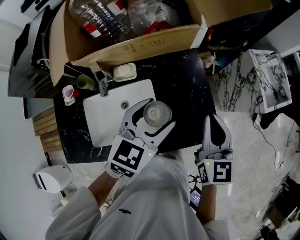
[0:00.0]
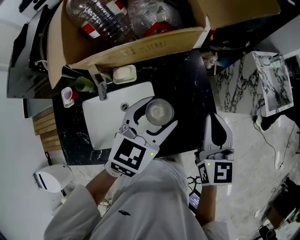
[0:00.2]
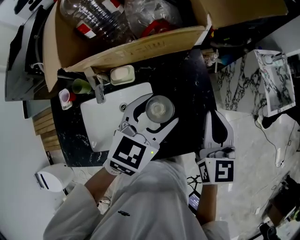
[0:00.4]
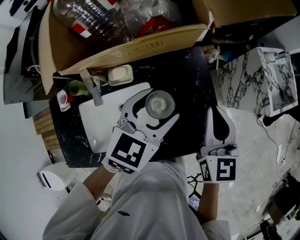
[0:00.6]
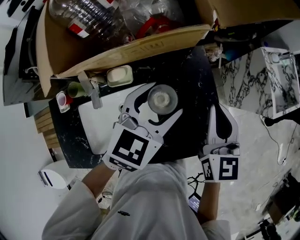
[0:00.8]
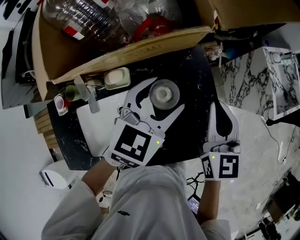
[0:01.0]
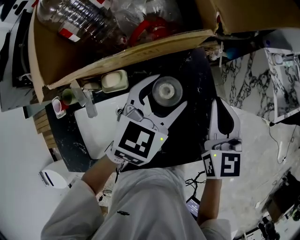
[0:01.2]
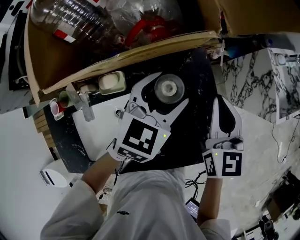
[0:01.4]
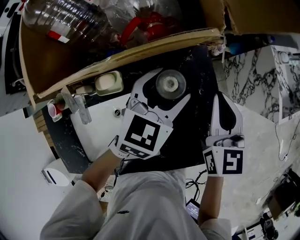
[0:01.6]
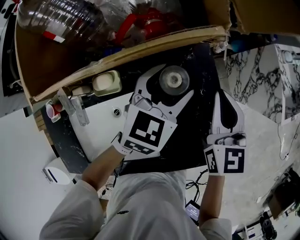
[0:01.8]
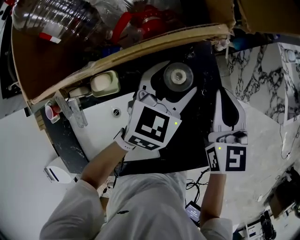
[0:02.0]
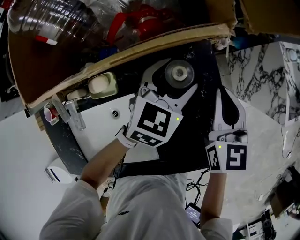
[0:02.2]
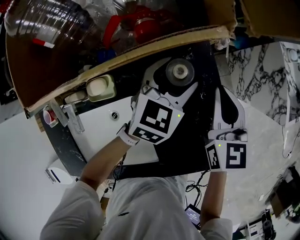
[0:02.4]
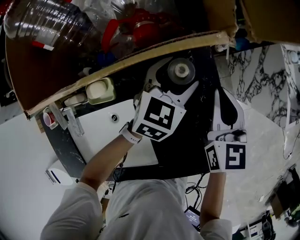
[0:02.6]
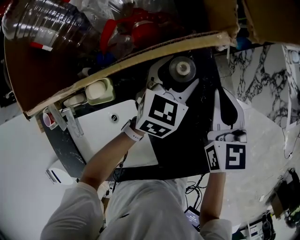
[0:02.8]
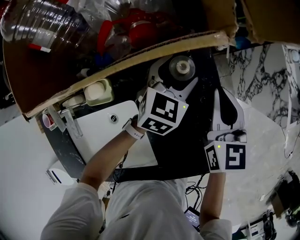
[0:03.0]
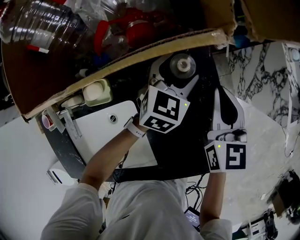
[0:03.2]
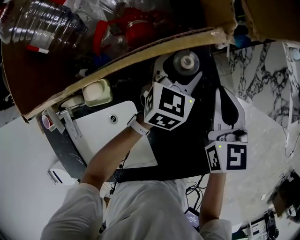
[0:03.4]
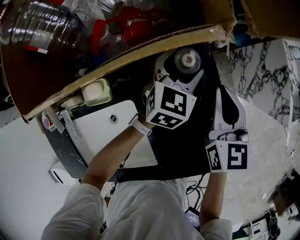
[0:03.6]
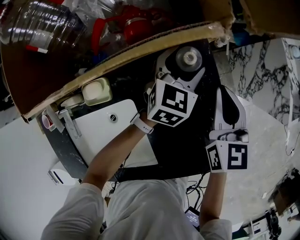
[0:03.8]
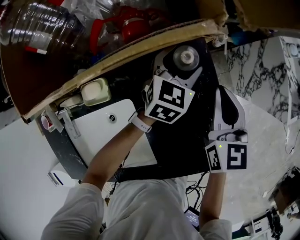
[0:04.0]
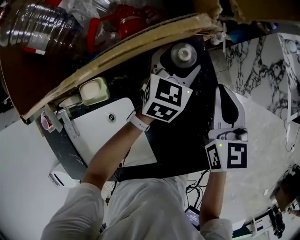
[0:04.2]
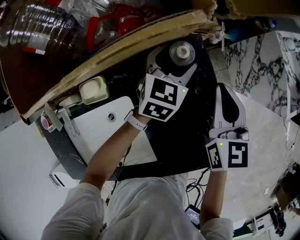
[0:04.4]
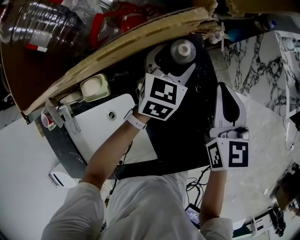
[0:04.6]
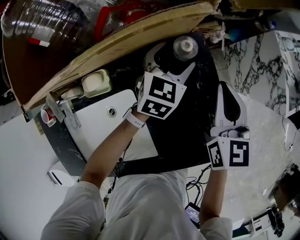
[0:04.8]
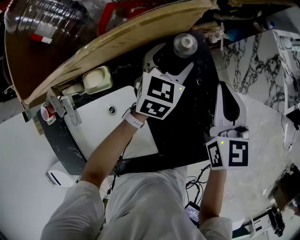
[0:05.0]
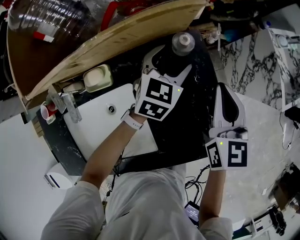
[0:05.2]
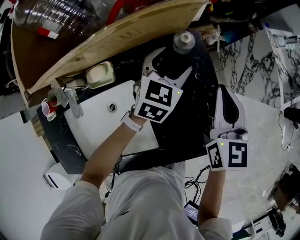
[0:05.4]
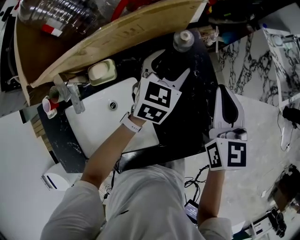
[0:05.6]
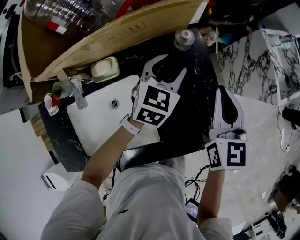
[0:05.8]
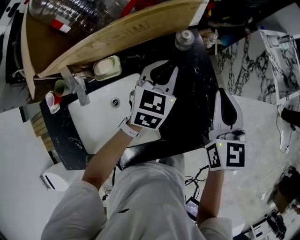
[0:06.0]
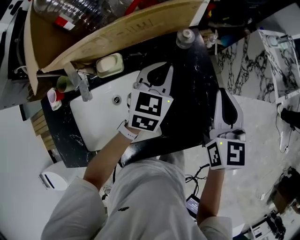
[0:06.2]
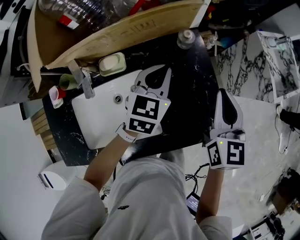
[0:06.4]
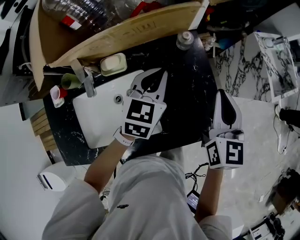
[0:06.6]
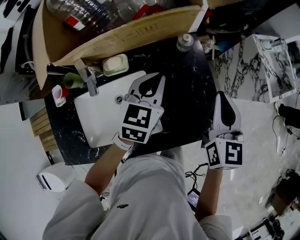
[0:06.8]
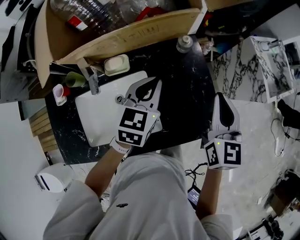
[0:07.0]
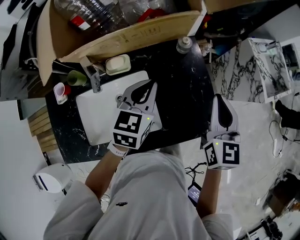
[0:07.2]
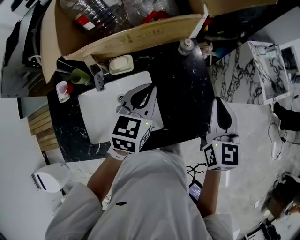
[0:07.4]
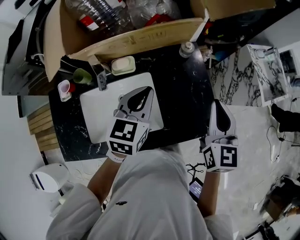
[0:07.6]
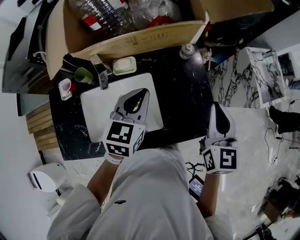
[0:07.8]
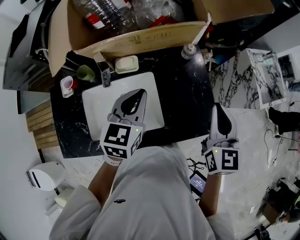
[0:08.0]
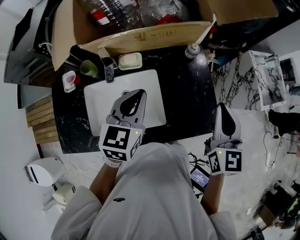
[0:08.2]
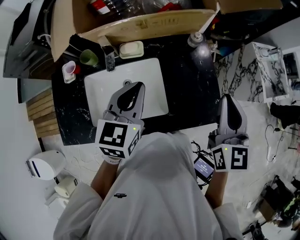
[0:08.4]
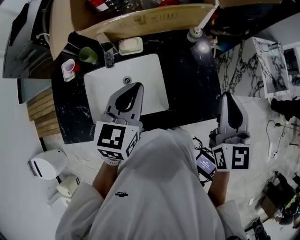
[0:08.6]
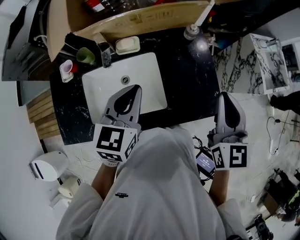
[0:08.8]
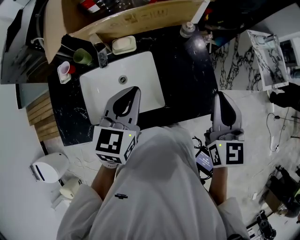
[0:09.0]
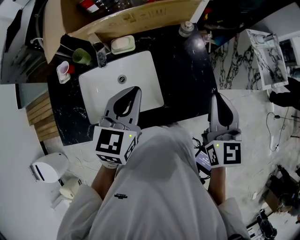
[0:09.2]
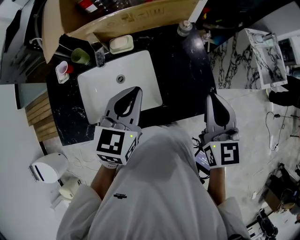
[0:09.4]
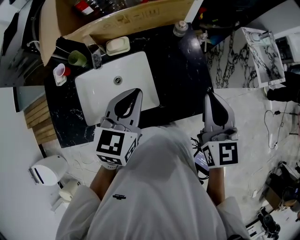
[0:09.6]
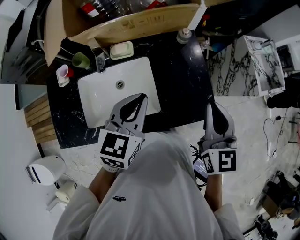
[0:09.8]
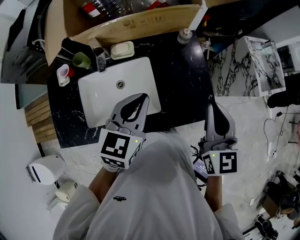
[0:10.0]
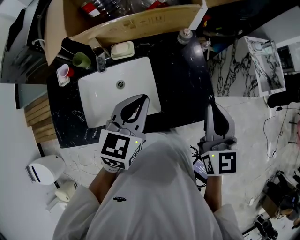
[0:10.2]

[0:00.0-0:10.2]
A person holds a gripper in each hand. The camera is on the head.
0:00.0 to 0:01.4: Both grippers move forward and downward, some 20 cm.
0:01.4 to 0:03.0: The left gripper heads downward and forward, covering about 20 cm. Meanwhile the right gripper goes some 10 cm downward and forward.
0:03.0 to 0:04.4: There are only small adjustments of the grippers.
0:04.4 to 0:05.8: Both grippers move backward and upward, roughly 15 cm. The left gripper closes its fingers.
0:05.8 to 0:07.2: The left gripper heads backward, upward and to the left, covering approximately 20 cm, and closes its fingers, while the right gripper moves upward and backward, about 10 cm.
0:07.2 to 0:08.8: The right gripper moves backward and upward, some 10 cm; the left gripper shifts approximately 15 cm backward, upward and to the left.
0:08.8 to 0:10.2: The left gripper shifts by some 5 cm.

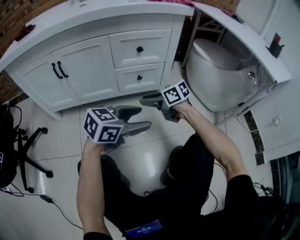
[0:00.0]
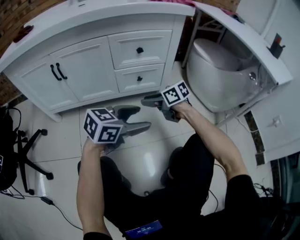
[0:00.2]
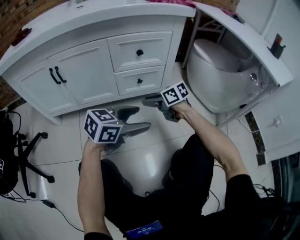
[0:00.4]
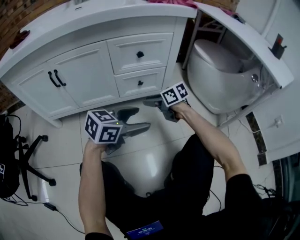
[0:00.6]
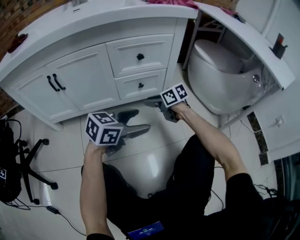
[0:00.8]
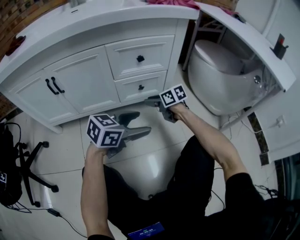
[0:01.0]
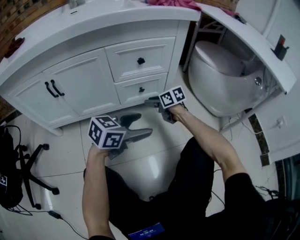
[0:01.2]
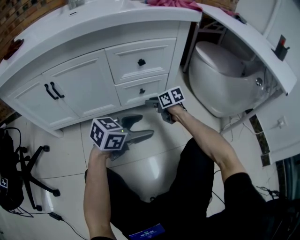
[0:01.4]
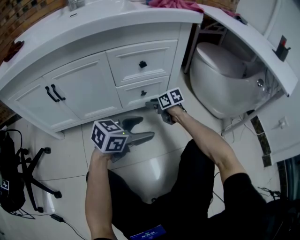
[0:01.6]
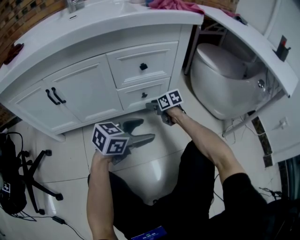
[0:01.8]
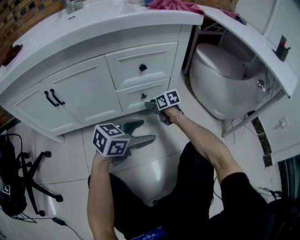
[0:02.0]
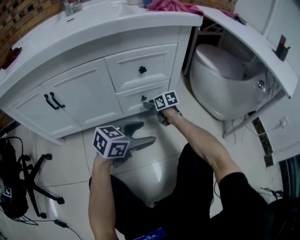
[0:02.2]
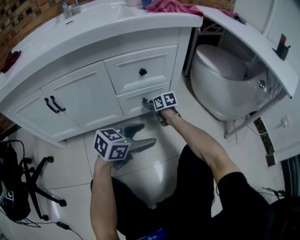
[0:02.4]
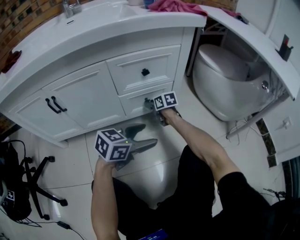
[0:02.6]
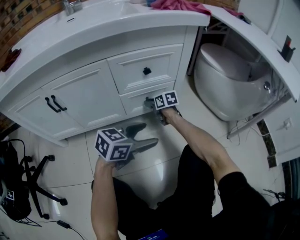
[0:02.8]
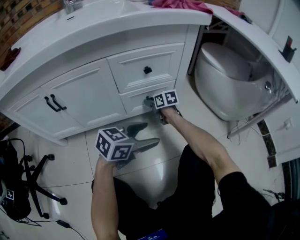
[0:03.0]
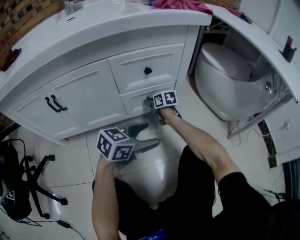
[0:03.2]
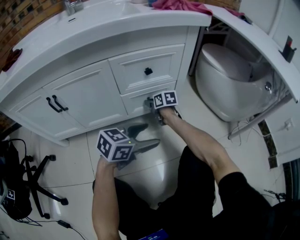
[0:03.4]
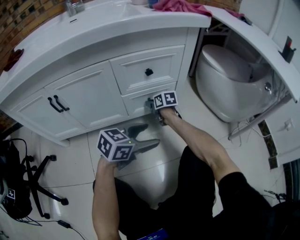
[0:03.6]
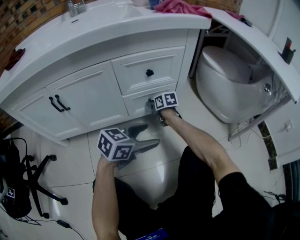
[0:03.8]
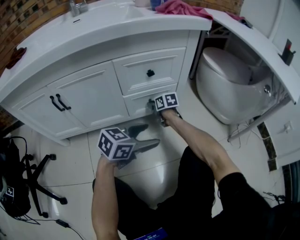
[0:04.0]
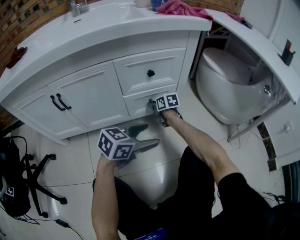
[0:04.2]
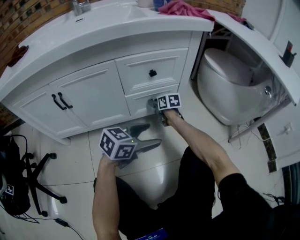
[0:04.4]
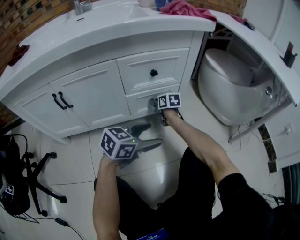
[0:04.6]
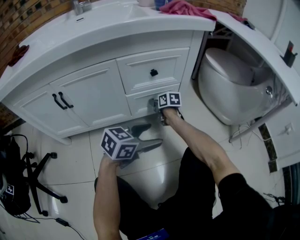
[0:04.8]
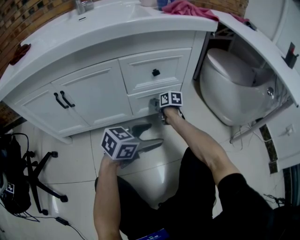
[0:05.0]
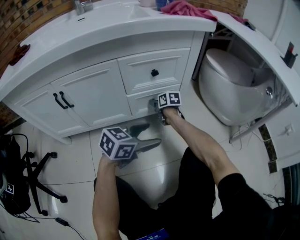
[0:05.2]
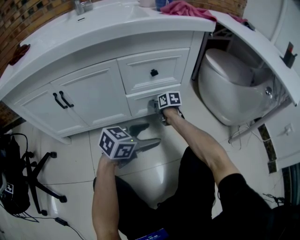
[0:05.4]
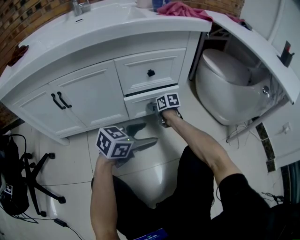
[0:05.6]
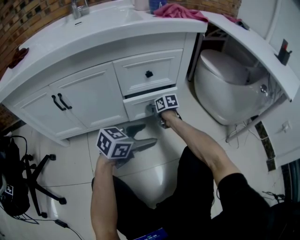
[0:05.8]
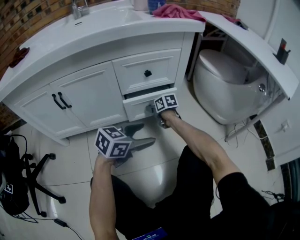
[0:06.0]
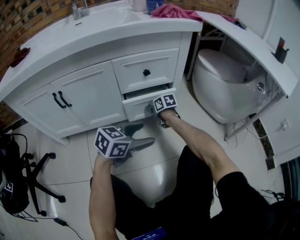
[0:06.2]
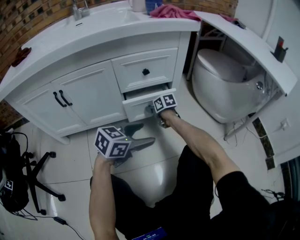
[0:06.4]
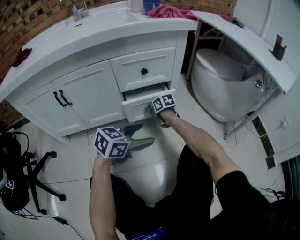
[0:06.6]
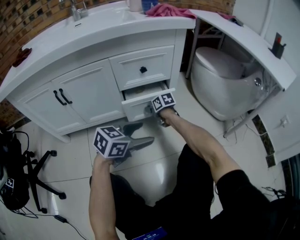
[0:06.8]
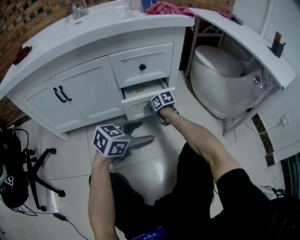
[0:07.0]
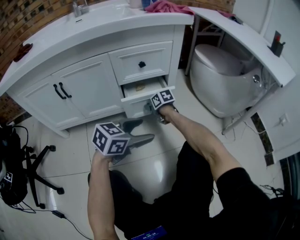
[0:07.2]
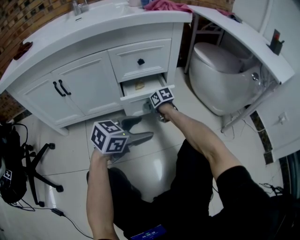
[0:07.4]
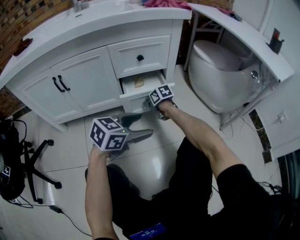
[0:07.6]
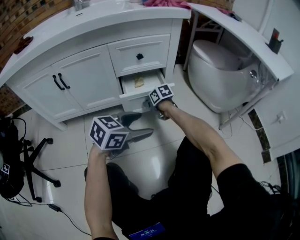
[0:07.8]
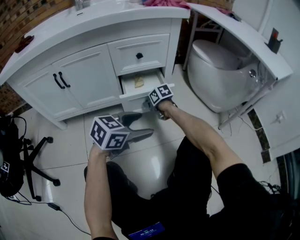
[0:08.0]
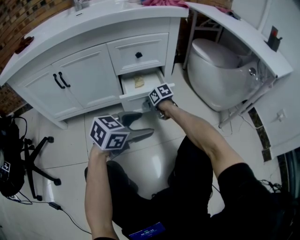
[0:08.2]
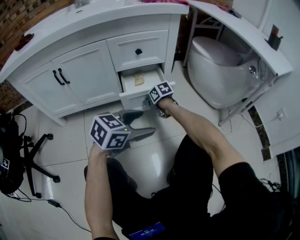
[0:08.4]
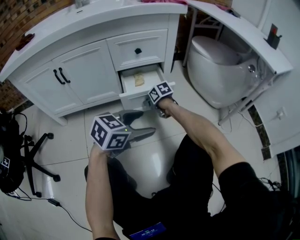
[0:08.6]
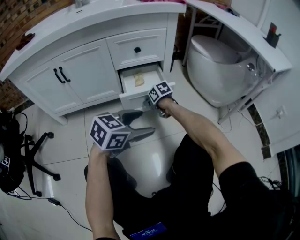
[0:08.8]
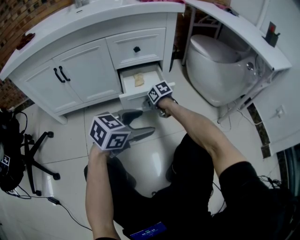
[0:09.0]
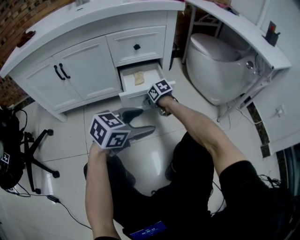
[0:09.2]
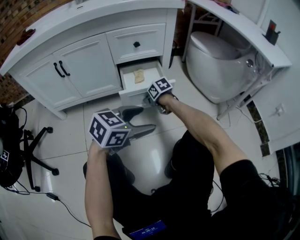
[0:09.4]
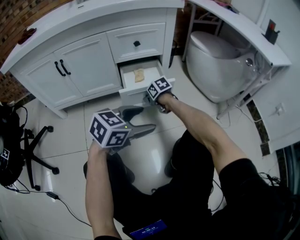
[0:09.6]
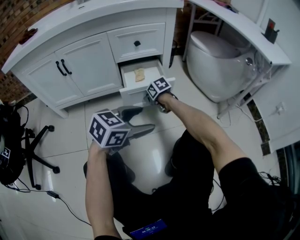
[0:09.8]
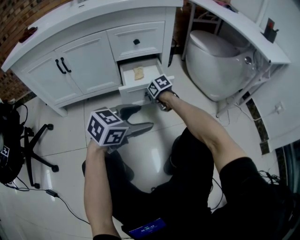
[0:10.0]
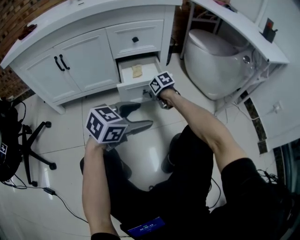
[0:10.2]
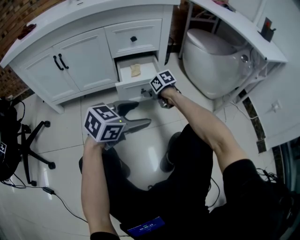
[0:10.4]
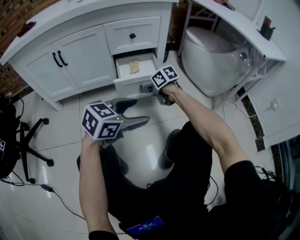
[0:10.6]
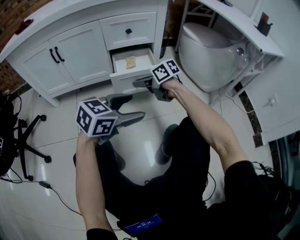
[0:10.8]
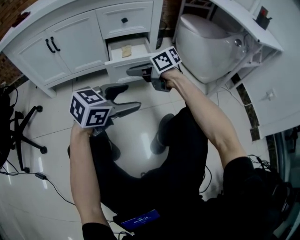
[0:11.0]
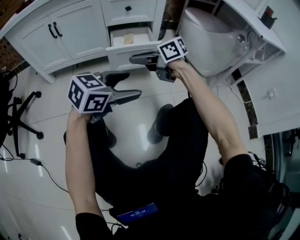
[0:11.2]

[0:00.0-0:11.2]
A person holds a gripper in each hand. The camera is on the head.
0:00.0 to 0:01.6: The right gripper moves roughly 20 cm, and rotates approximately 20 degrees. The left gripper changes place by about 10 cm.
0:01.6 to 0:03.2: The right gripper is displaced forward by roughly 5 cm.
0:03.2 to 0:04.8: The grippers stay close to where they were, moving slightly.
0:04.8 to 0:06.4: The right gripper heads backward, covering roughly 5 cm.
0:06.4 to 0:08.0: The grippers both shift backward by some 10 cm.
0:08.0 to 0:09.6: The left gripper ends up some 5 cm from where it was. Meanwhile the right gripper moves roughly 5 cm.
0:09.6 to 0:11.2: The right gripper travels upward by about 20 cm, and tilts its fingers approximately 30 degrees upward, while the left gripper shifts by some 5 cm.

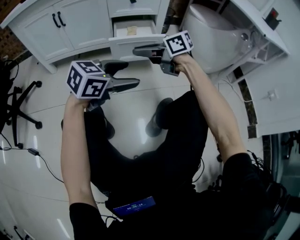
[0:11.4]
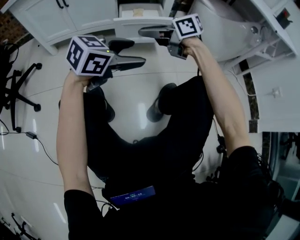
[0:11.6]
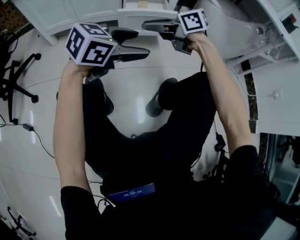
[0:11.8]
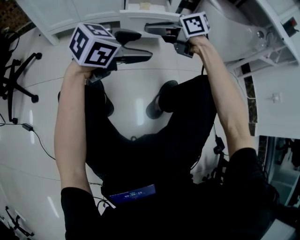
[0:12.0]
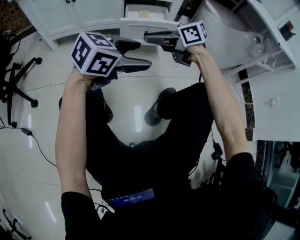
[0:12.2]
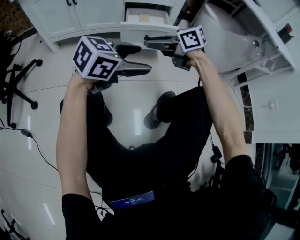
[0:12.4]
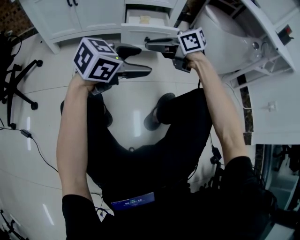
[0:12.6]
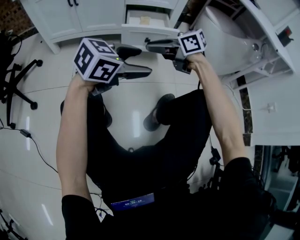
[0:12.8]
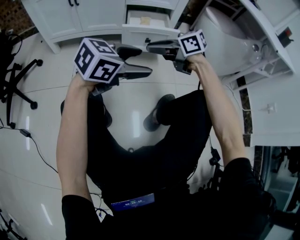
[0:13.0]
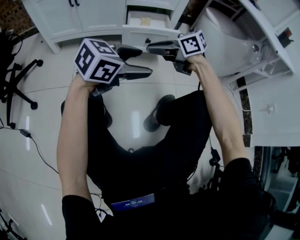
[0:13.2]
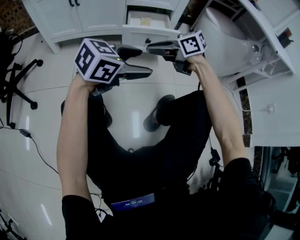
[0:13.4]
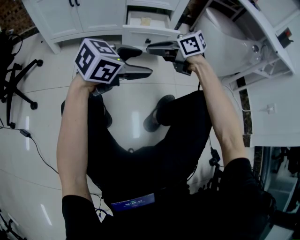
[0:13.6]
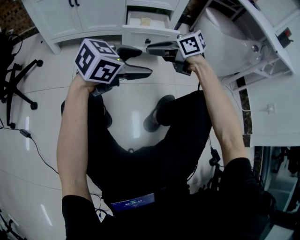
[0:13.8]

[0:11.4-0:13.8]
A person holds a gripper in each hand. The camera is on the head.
0:11.4 to 0:12.6: The grippers make only small movements.
0:12.6 to 0:13.8: Both grippers stay about where they are.
